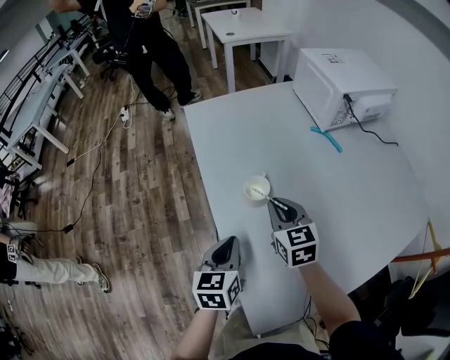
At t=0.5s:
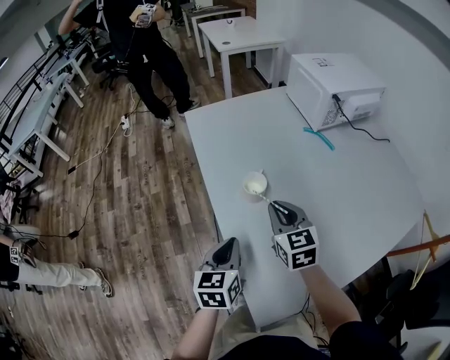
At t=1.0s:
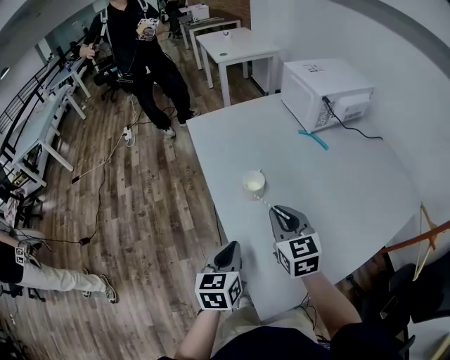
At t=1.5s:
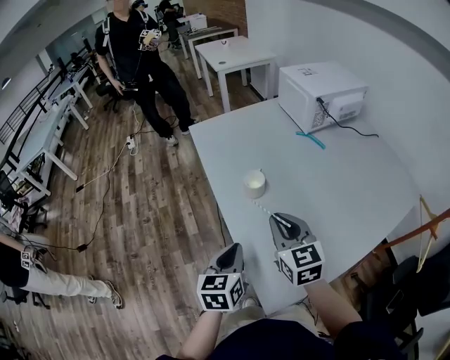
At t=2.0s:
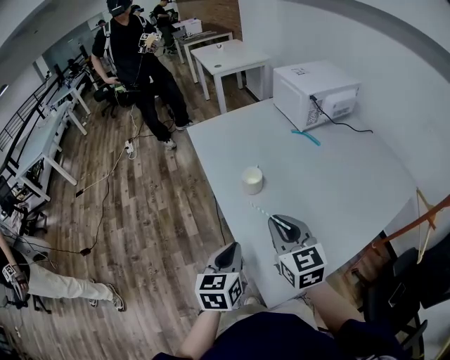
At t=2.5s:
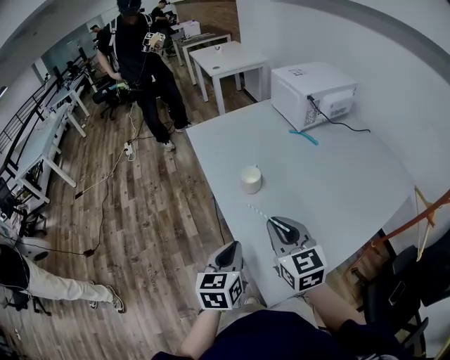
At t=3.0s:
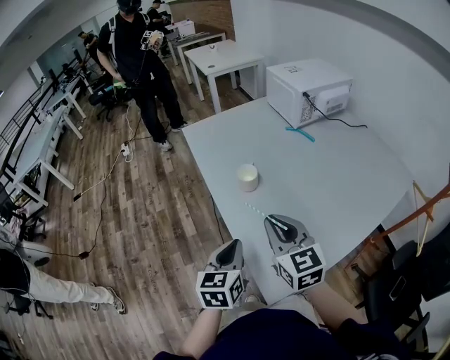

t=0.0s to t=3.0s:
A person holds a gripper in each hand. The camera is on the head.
t=0.0s to t=1.5s: The left gripper heads backward, covering roughly 10 cm. Meanwhile the right gripper travels backward and upward by approximately 15 cm.
t=1.5s to t=3.0s: The right gripper changes place by approximately 5 cm.

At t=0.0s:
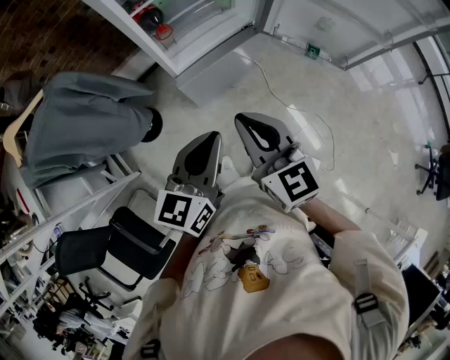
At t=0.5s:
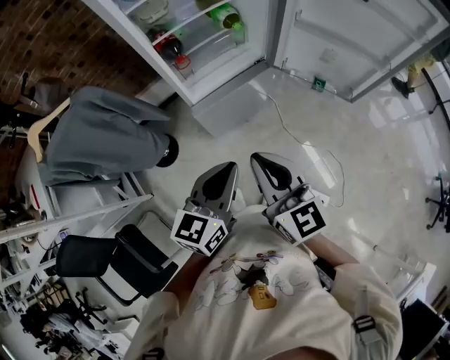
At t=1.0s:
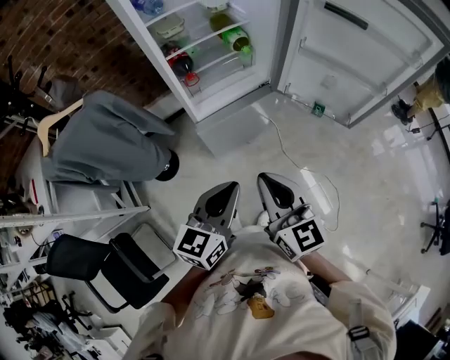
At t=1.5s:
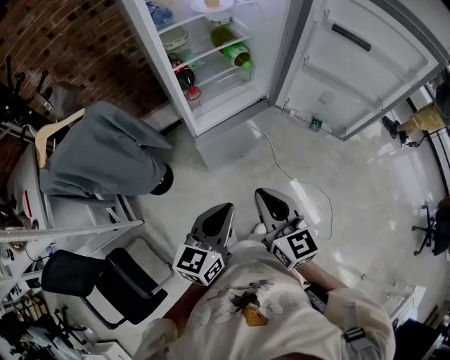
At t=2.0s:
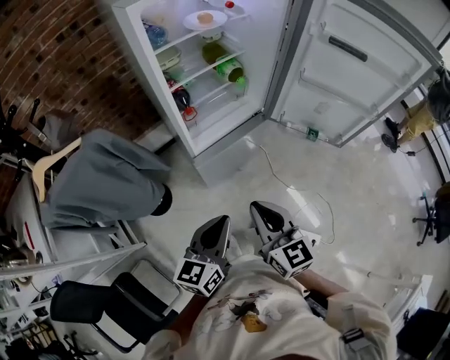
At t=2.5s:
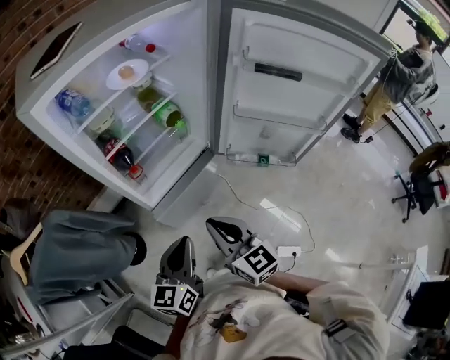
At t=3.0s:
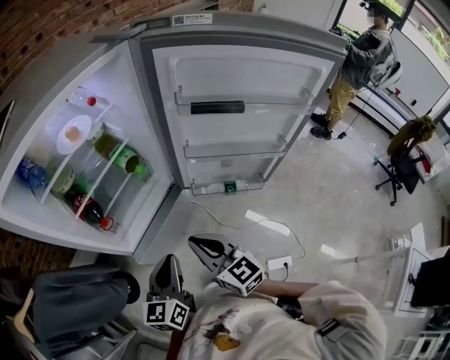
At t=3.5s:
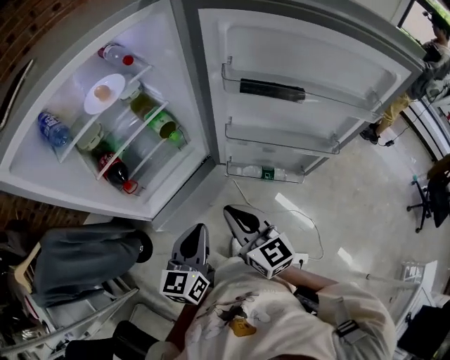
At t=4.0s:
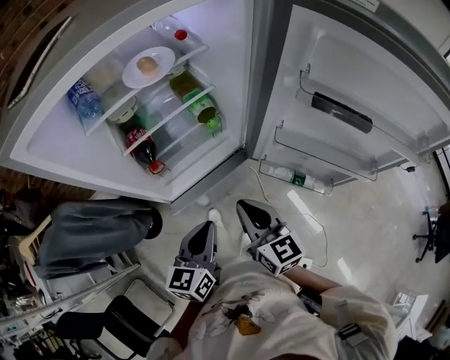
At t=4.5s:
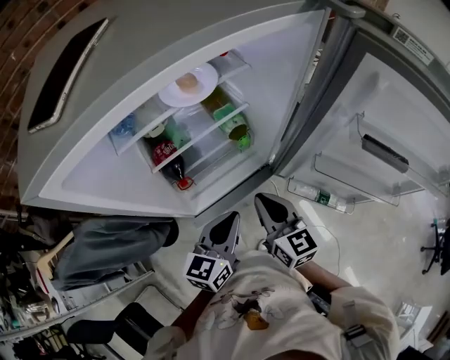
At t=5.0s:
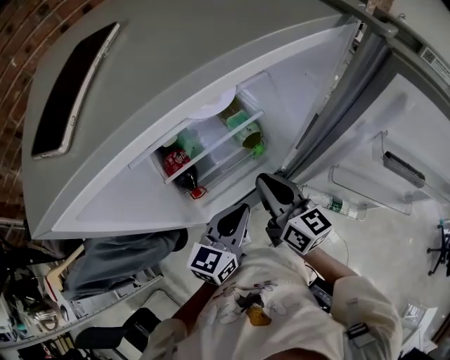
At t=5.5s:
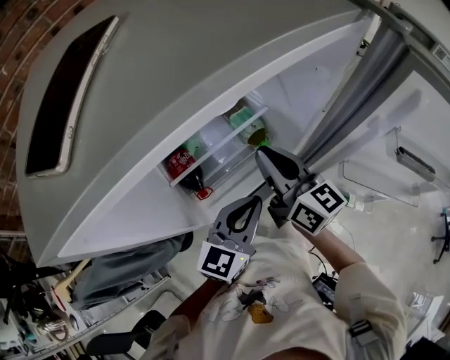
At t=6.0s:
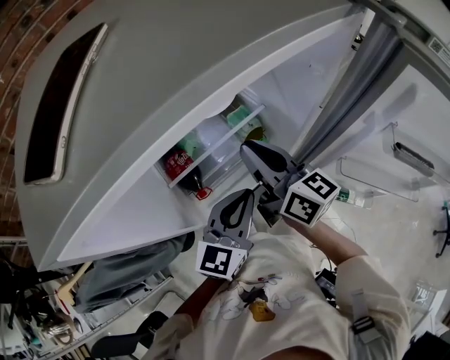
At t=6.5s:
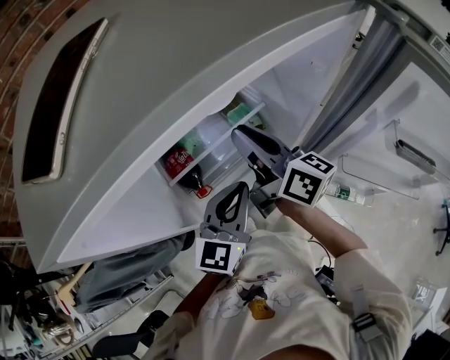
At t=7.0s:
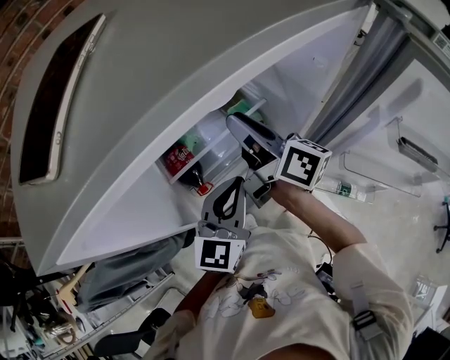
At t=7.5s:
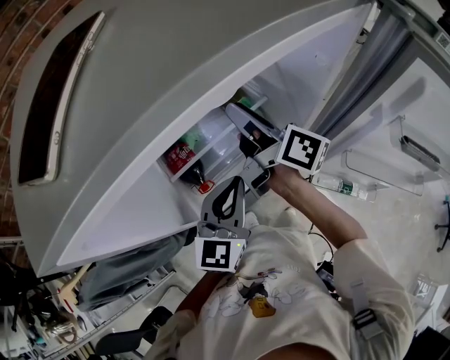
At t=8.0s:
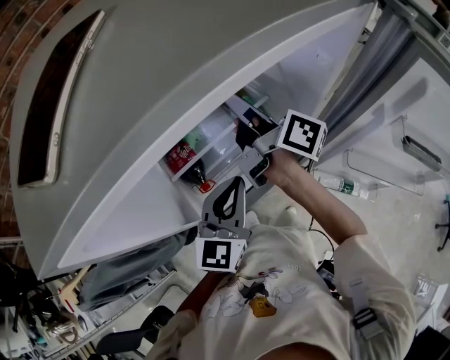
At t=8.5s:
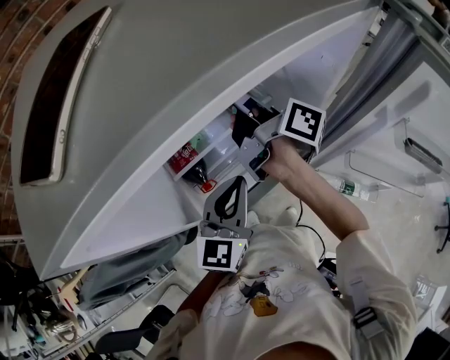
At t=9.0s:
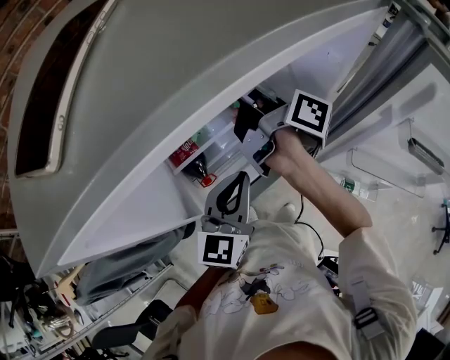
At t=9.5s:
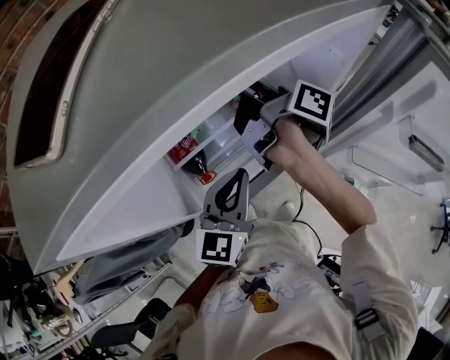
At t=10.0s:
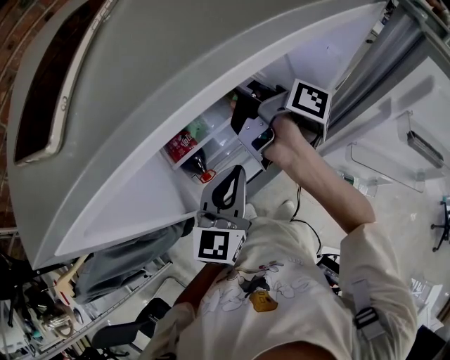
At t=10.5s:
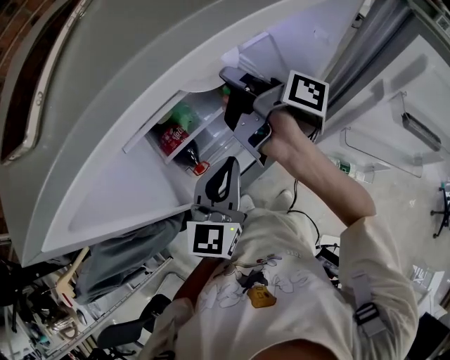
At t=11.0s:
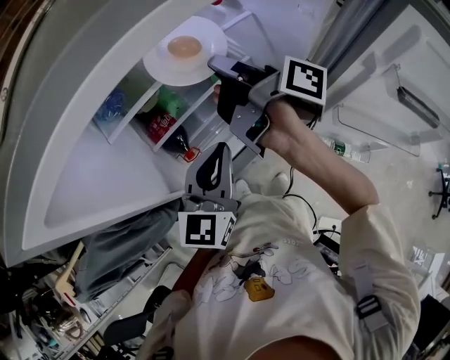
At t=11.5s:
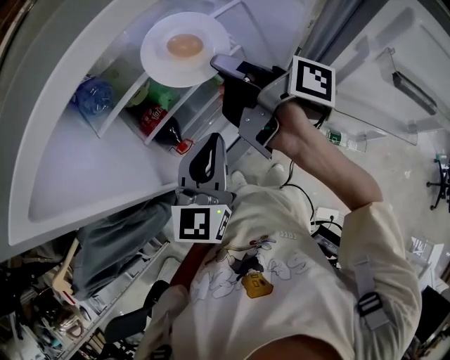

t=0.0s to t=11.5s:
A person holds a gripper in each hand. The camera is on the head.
t=0.0s to t=2.0s: The left gripper shifts by about 5 cm.
t=2.0s to t=4.0s: The grippers both shift forward and to the right by approximately 25 cm.
t=4.0s to t=6.0s: The left gripper shifts about 15 cm forward, and swivels approximately 20 degrees; the right gripper travels forward, to the left and upward by some 25 cm, and swivels roughly 20 degrees.
t=6.0s to t=7.5s: The right gripper heads forward, covering about 5 cm, changes its angle by roughly 30 degrees, and opens up.
t=7.5s to t=9.5s: The right gripper turns by about 30 degrees.
t=9.5s to t=11.5s: The right gripper heads backward, covering roughly 5 cm.

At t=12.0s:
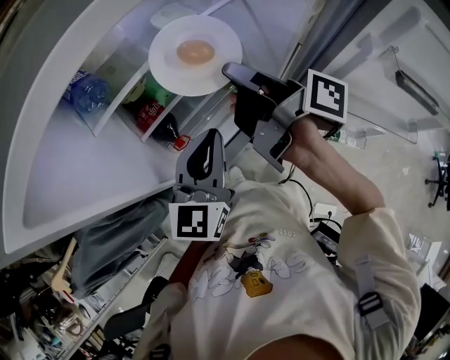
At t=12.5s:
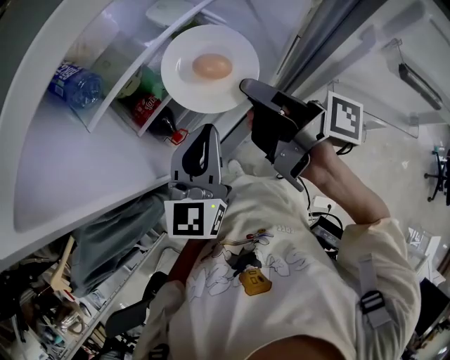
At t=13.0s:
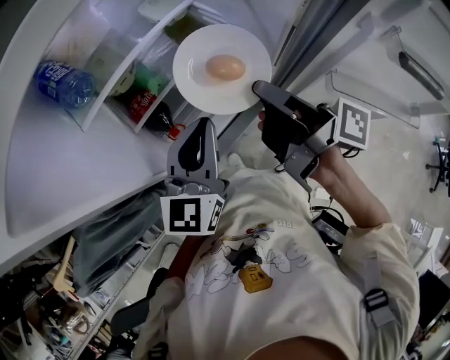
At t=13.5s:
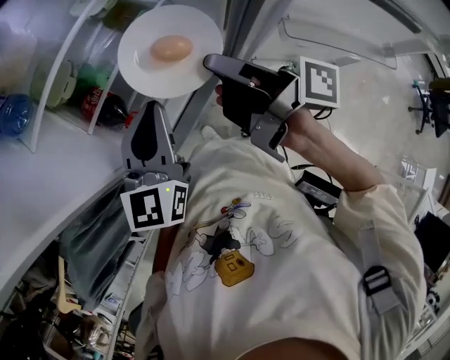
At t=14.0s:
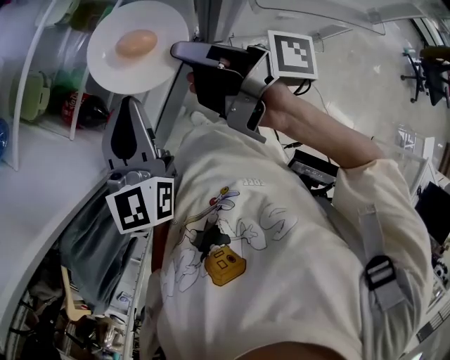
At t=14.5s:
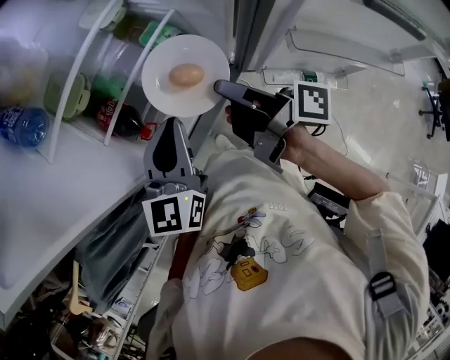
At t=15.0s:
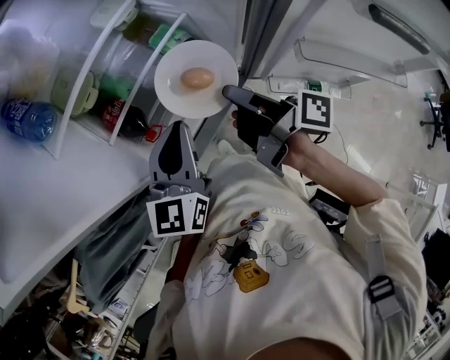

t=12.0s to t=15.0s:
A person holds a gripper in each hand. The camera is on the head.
t=12.0s to t=13.5s: The right gripper goes about 10 cm backward and downward.
t=13.5s to t=15.0s: There are only small adjustments of the grippers.

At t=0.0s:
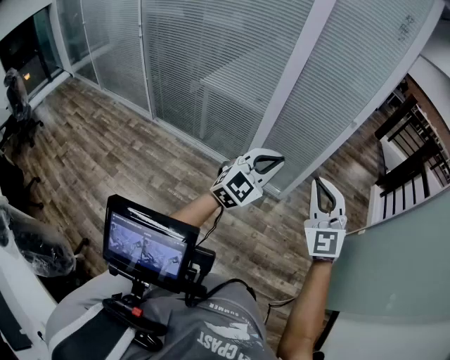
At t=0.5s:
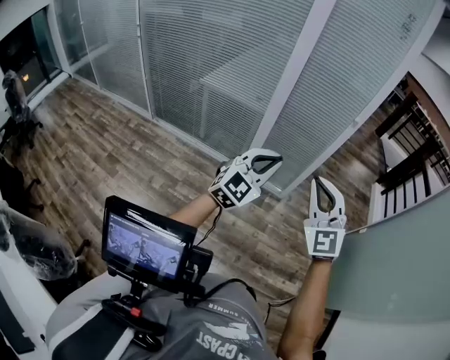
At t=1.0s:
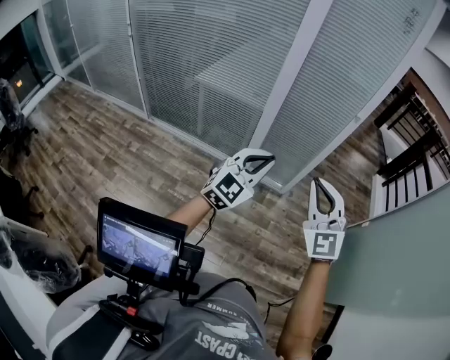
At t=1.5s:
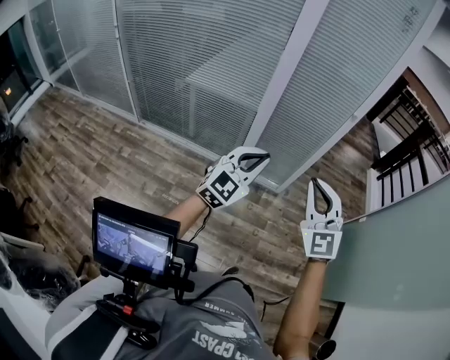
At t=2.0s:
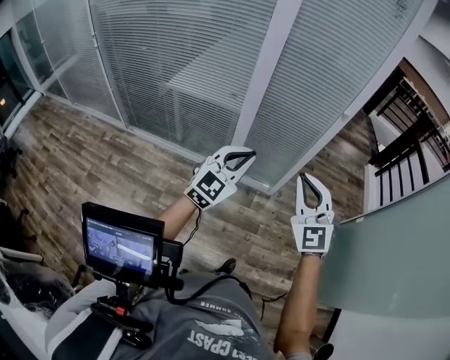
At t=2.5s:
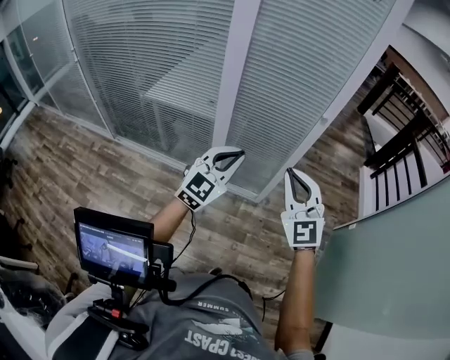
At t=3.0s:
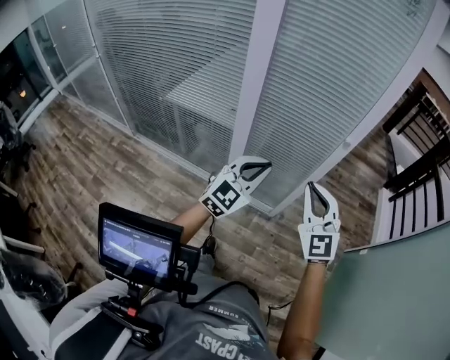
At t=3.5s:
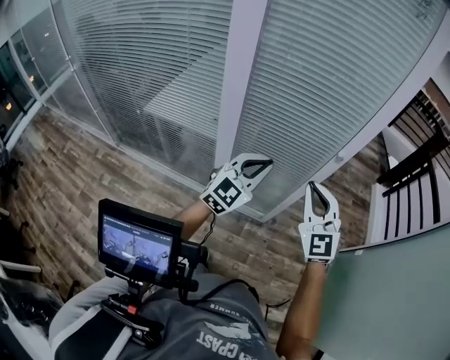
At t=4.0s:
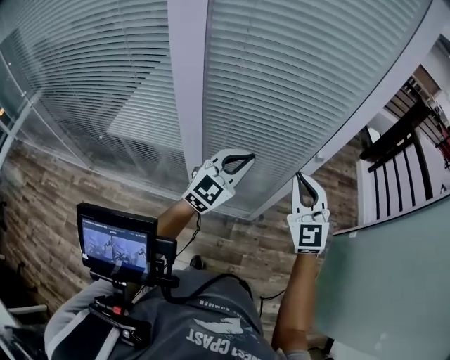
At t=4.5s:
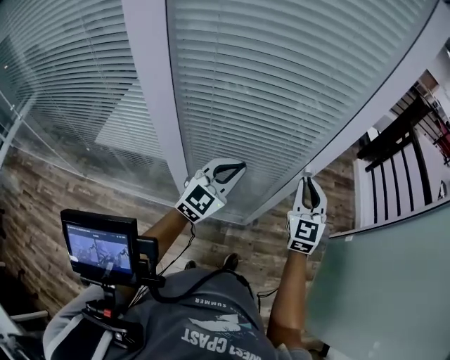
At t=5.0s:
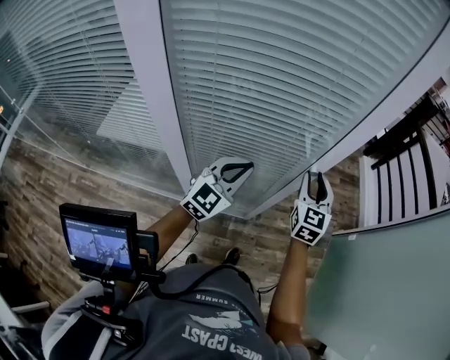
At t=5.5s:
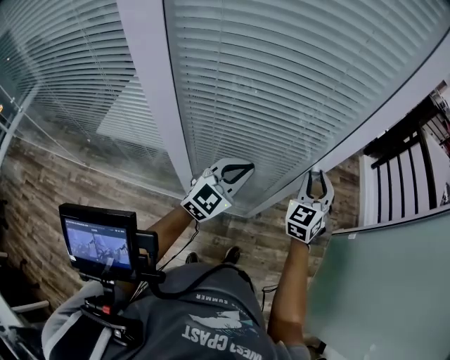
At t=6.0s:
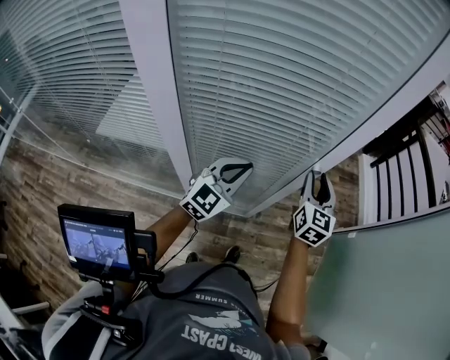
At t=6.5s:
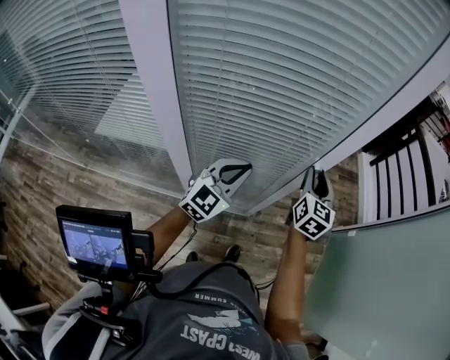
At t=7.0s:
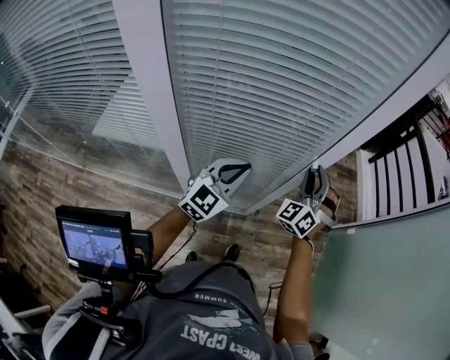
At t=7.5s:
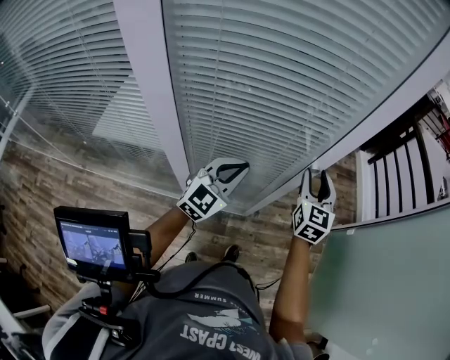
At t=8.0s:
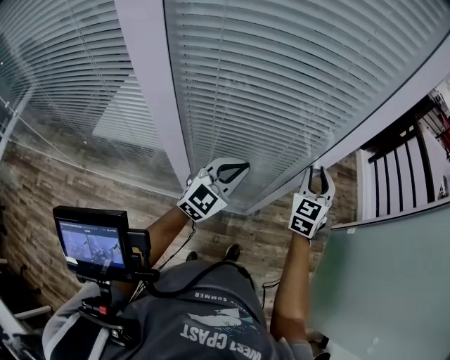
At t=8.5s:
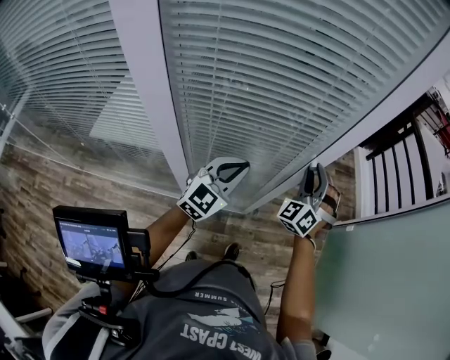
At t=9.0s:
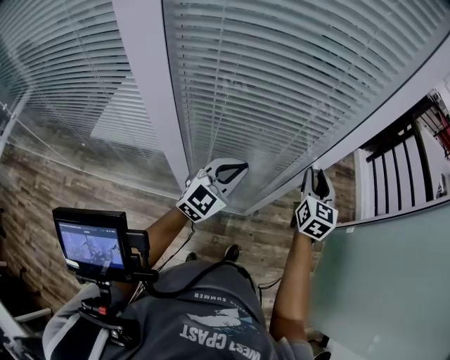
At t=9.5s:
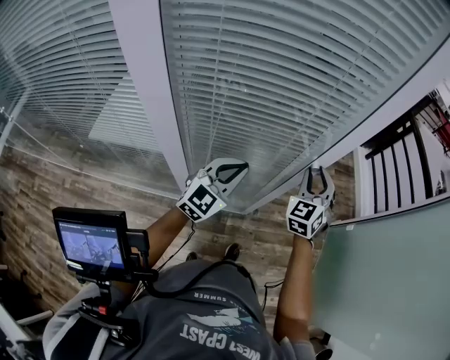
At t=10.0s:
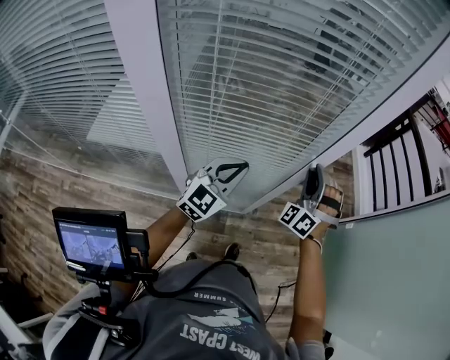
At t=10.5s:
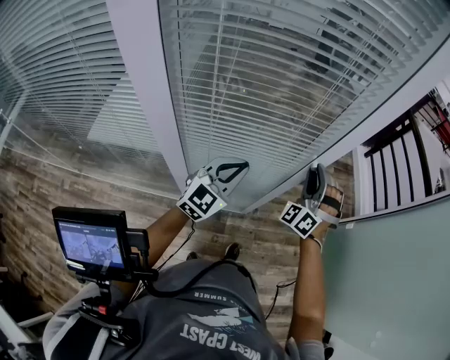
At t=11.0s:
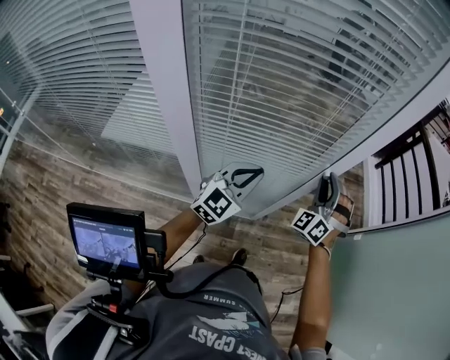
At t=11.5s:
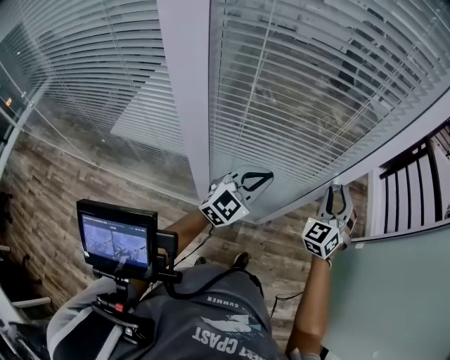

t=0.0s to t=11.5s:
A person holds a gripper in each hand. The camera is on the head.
t=0.0s to t=2.0s: The two grippers go approximately 20 cm forward.
t=2.0s to t=4.0s: The two grippers travel together, forward, about 50 cm.
t=4.0s to t=6.0s: The right gripper goes some 20 cm forward, to the right and downward, turns by roughly 40 degrees, and opens its fingers. The left gripper heads forward and downward, covering roughly 10 cm.
t=7.5s to t=9.5s: The right gripper turns by about 30 degrees.
